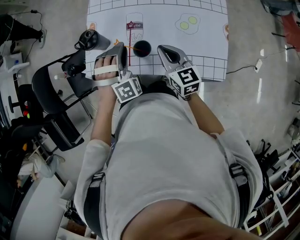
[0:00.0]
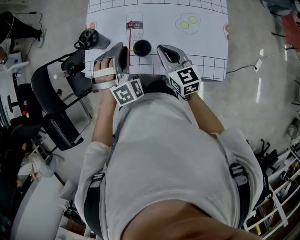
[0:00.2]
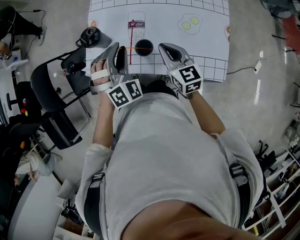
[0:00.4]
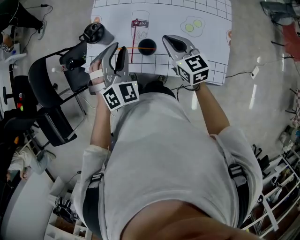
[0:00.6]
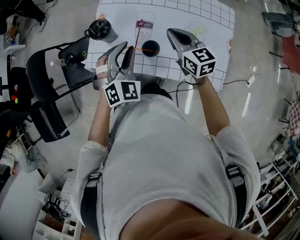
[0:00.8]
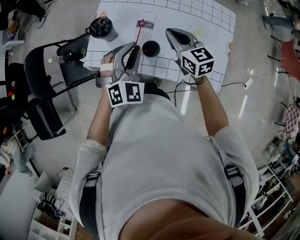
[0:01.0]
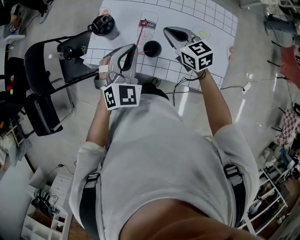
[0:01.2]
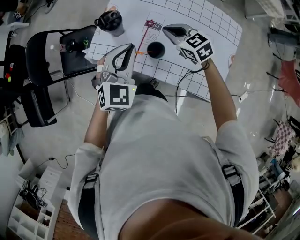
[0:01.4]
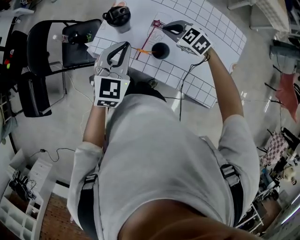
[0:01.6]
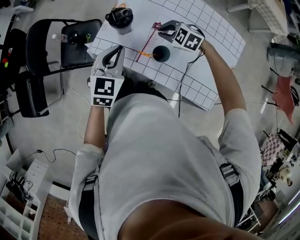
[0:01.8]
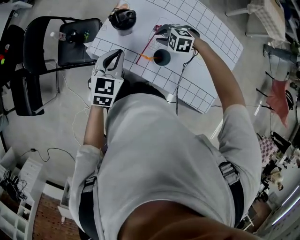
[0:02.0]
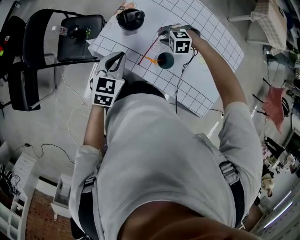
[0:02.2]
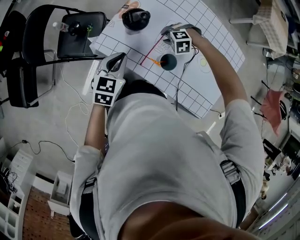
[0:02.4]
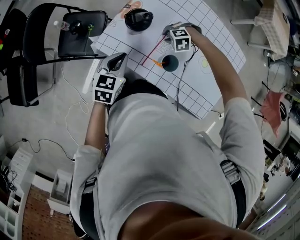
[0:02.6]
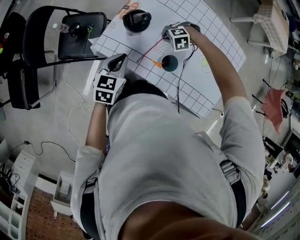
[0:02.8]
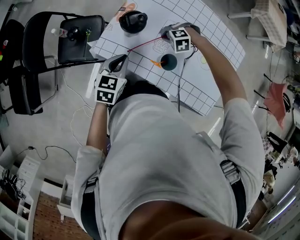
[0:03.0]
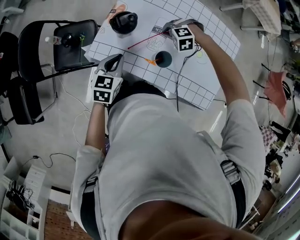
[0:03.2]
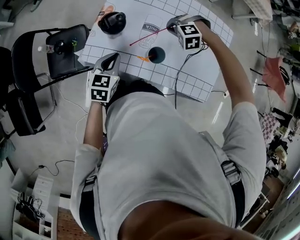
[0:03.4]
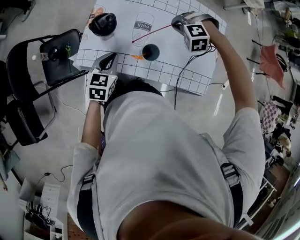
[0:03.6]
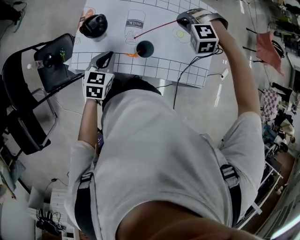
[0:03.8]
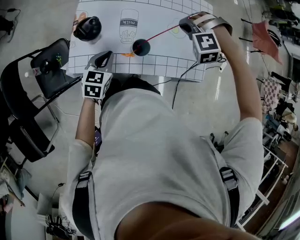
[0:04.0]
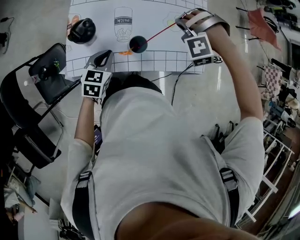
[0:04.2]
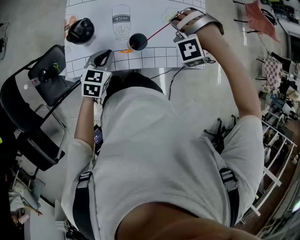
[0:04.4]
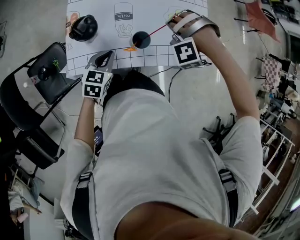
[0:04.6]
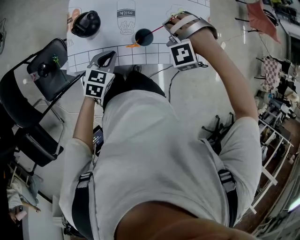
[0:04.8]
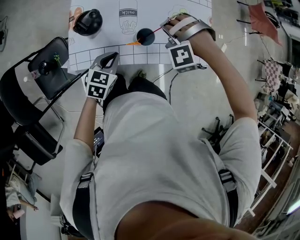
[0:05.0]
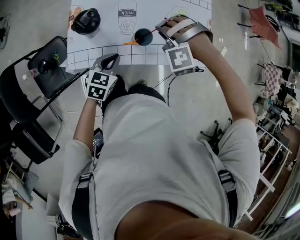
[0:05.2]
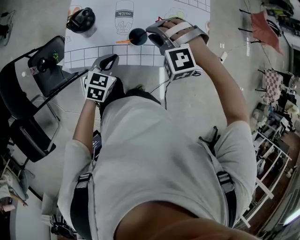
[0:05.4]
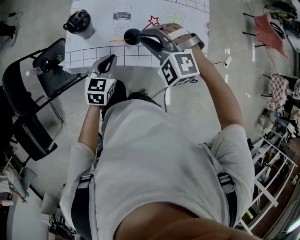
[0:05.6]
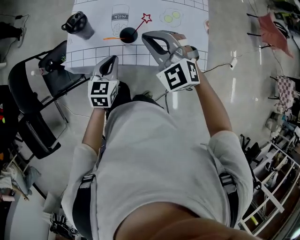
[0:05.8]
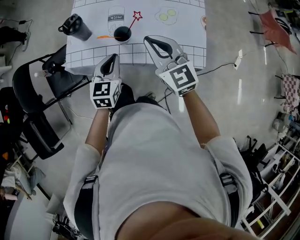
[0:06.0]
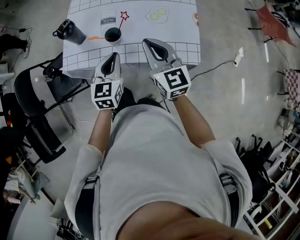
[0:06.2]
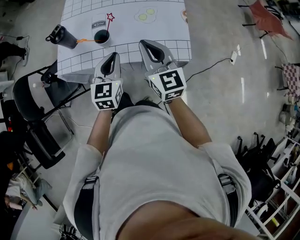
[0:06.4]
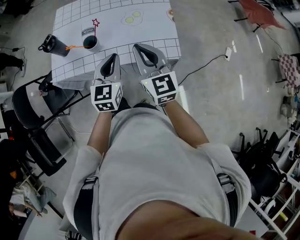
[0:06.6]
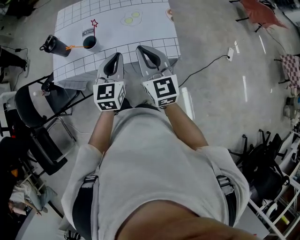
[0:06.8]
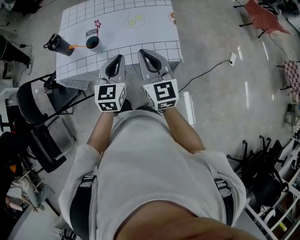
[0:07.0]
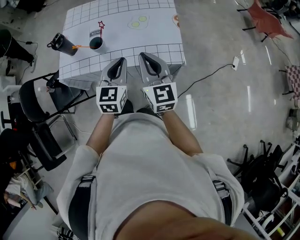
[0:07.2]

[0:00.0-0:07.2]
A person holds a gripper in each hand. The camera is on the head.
0:00.0 to 0:01.4: The left gripper goes approximately 10 cm upward and to the left, rotates around the line of its fingers by approximately 60 degrees, counterclockwise from behind, and closes up; the right gripper moves forward, about 10 cm, and turns by approximately 40 degrees.
0:01.4 to 0:02.8: Both grippers travel together downward, some 15 cm. The left gripper rotates some 40 degrees. The right gripper points its fingers roughly 40 degrees further downward.
0:02.8 to 0:04.4: The right gripper moves upward, about 20 cm, and turns by about 40 degrees. Meanwhile the left gripper shifts by some 10 cm, and changes its angle by about 30 degrees.
0:04.4 to 0:05.8: The right gripper ends up approximately 15 cm from where it was, swivels approximately 90 degrees, and opens, then closes again; the left gripper ends up some 10 cm from where it was.
0:05.8 to 0:07.2: The left gripper moves to the right, upward and backward, roughly 25 cm. Meanwhile the right gripper goes about 25 cm to the right and backward, and twists about 50 degrees clockwise, seen from behind.

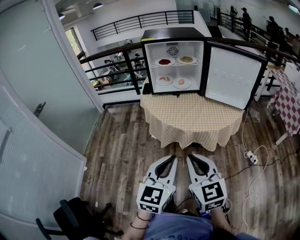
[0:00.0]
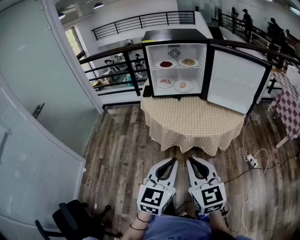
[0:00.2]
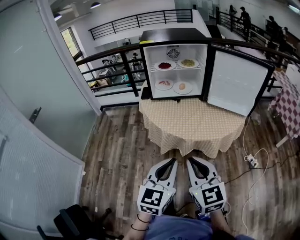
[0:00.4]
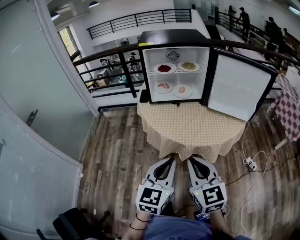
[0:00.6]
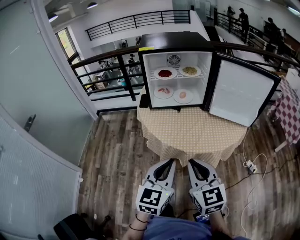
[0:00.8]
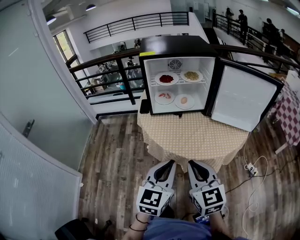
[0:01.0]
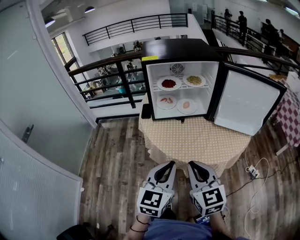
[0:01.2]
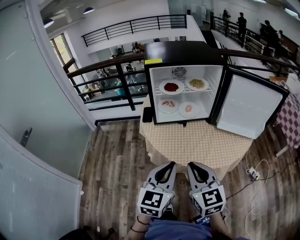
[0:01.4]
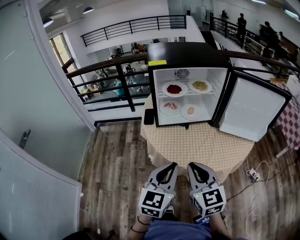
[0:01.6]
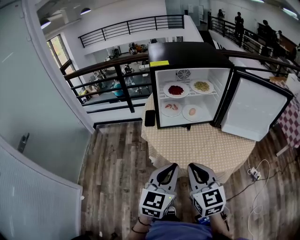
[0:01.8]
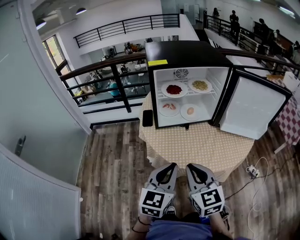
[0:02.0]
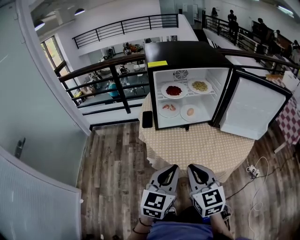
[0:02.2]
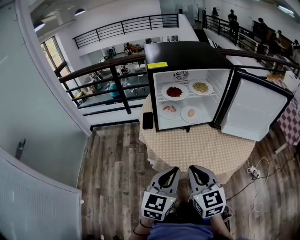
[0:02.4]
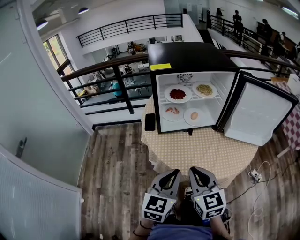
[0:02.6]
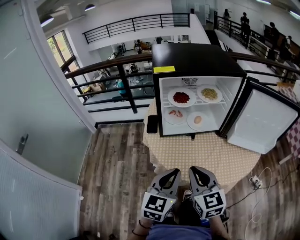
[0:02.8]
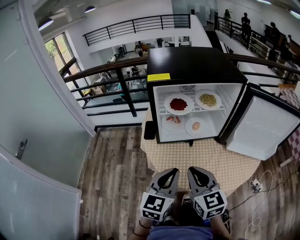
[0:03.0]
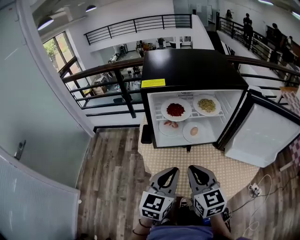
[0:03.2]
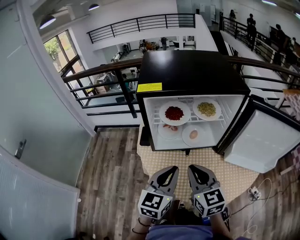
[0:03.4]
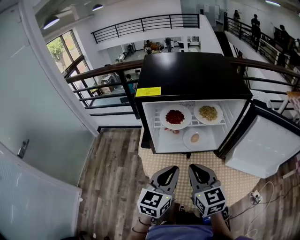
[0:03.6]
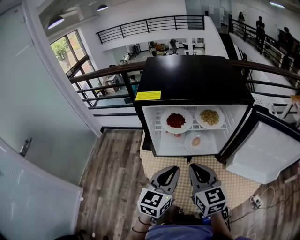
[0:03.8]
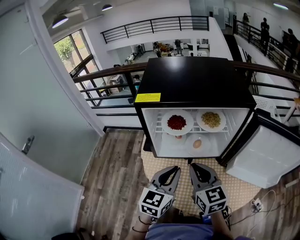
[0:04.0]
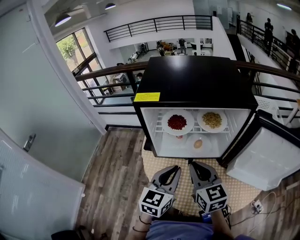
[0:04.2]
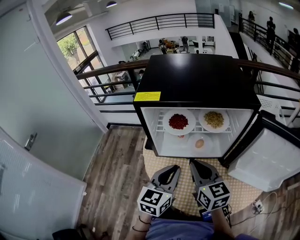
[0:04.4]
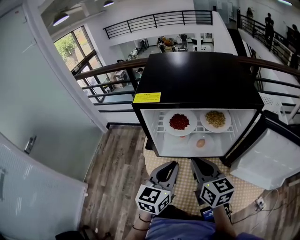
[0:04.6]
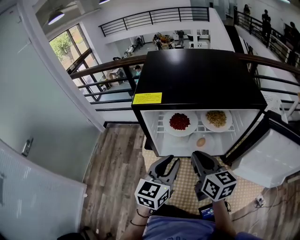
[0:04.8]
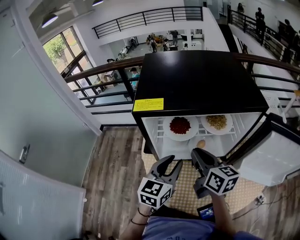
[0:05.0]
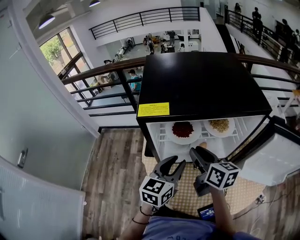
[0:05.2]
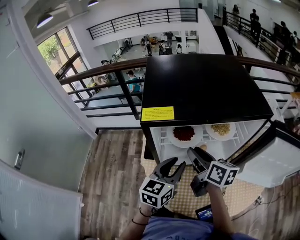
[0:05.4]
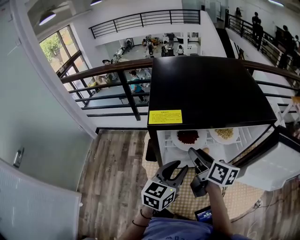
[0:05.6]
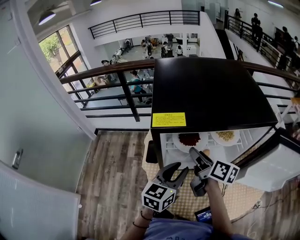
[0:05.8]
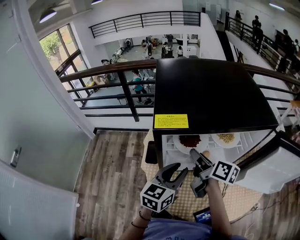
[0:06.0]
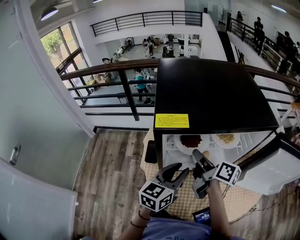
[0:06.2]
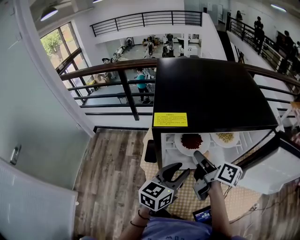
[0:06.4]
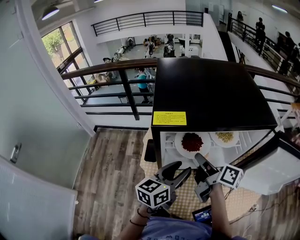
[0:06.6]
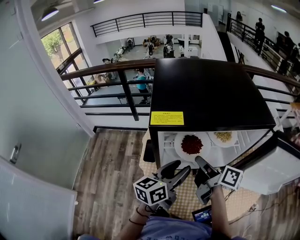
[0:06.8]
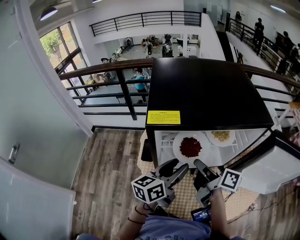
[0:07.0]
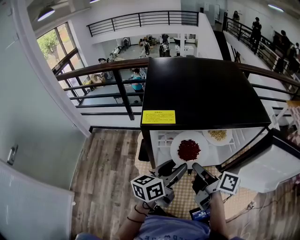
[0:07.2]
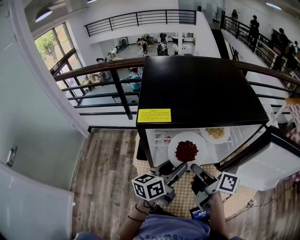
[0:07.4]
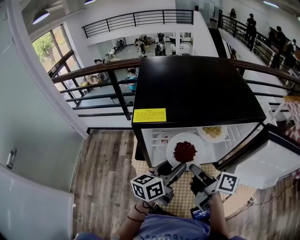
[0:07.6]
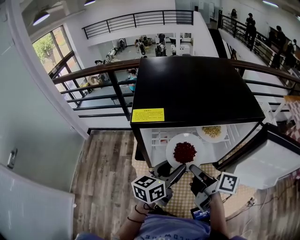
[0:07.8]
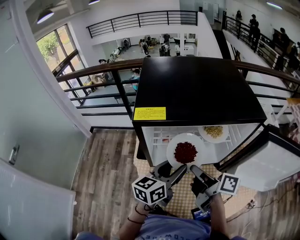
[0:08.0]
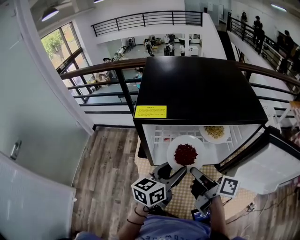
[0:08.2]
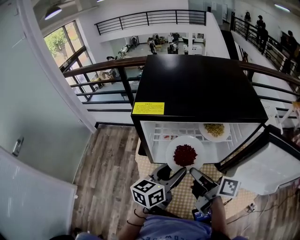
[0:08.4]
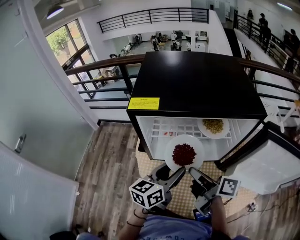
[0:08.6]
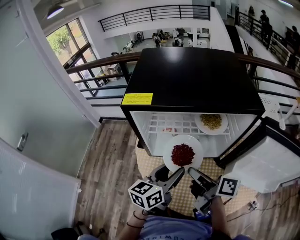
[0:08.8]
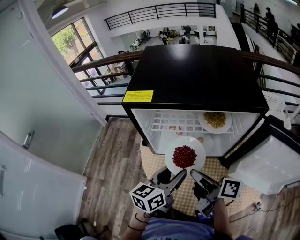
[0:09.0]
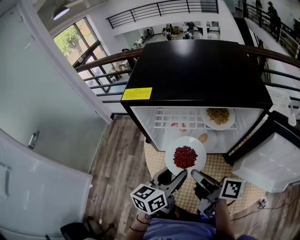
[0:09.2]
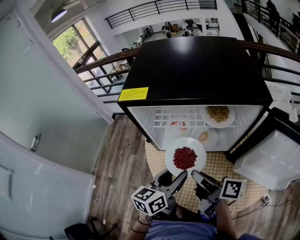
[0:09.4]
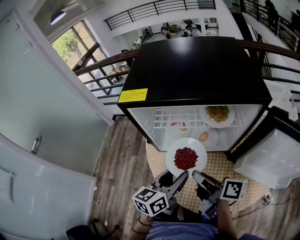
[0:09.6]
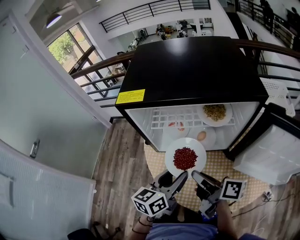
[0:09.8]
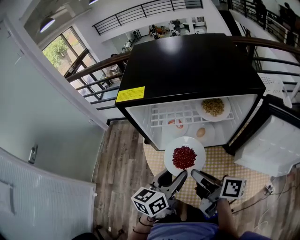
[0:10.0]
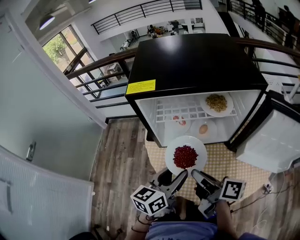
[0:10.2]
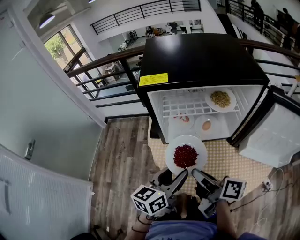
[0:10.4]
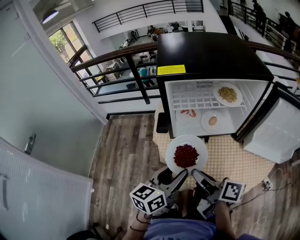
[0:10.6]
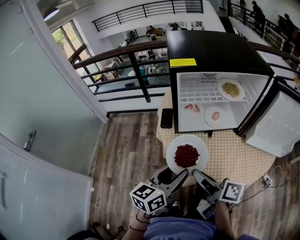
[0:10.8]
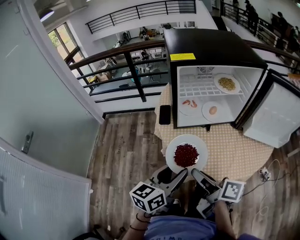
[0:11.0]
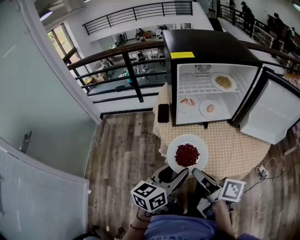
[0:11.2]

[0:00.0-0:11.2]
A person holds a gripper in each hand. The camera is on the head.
0:00.0 to 0:01.6: Both grippers move forward, some 25 cm.
0:01.6 to 0:03.2: The two grippers go some 15 cm forward.
0:03.2 to 0:04.8: The grippers both shift forward by some 15 cm. The right gripper changes its angle by about 20 degrees.
0:04.8 to 0:06.4: The right gripper shifts some 10 cm forward, changes its angle by roughly 40 degrees, and opens, then closes once more.
0:06.4 to 0:08.0: The right gripper travels backward by some 5 cm.
0:08.0 to 0:09.6: The two grippers go approximately 10 cm backward.
0:09.6 to 0:11.2: Both grippers move backward and to the left, approximately 25 cm.

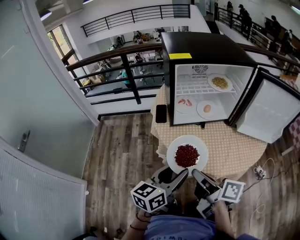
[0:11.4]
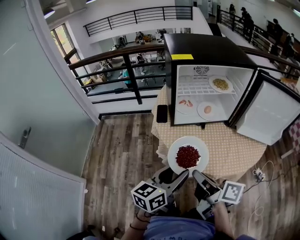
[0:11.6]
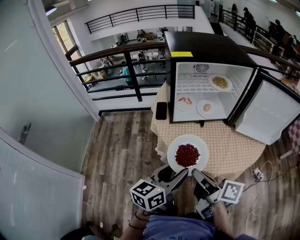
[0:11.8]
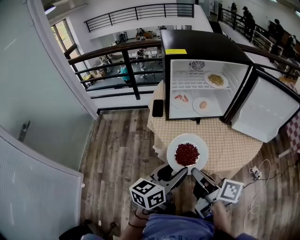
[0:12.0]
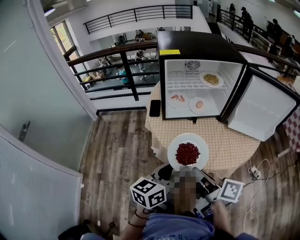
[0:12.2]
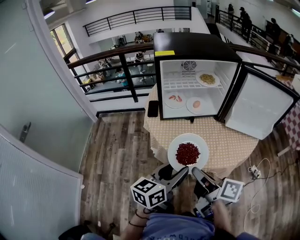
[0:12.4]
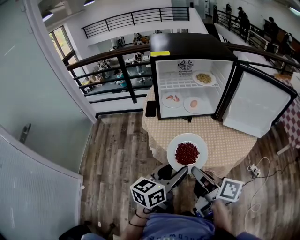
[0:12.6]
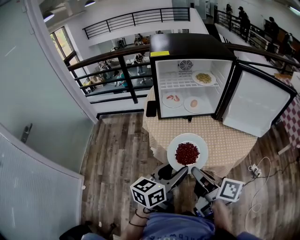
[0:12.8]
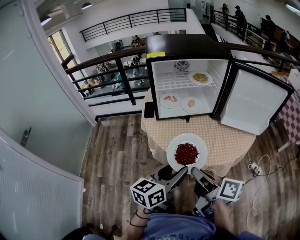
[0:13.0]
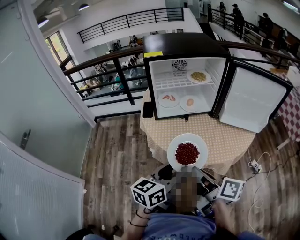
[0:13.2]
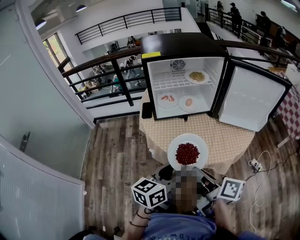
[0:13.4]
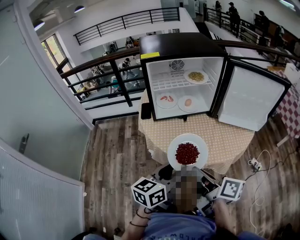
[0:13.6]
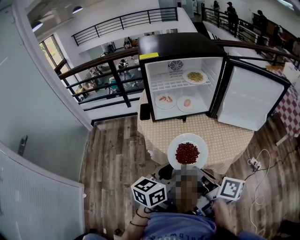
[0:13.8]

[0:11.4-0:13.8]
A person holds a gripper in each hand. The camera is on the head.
0:11.4 to 0:12.6: Both grippers move to the right and backward, some 10 cm.
0:12.6 to 0:13.8: The grippers make only small movements.

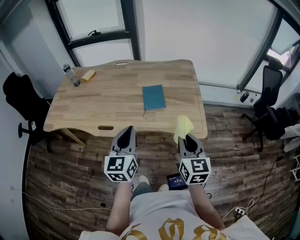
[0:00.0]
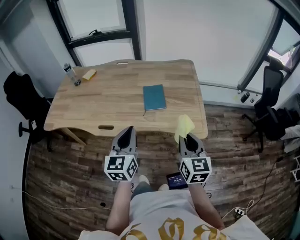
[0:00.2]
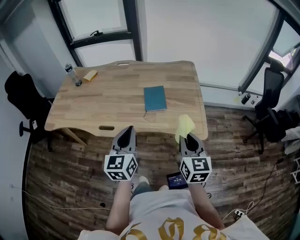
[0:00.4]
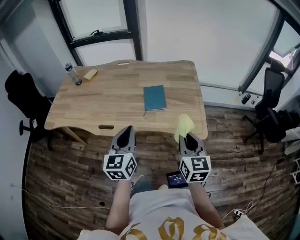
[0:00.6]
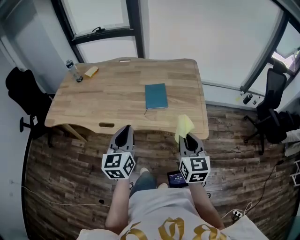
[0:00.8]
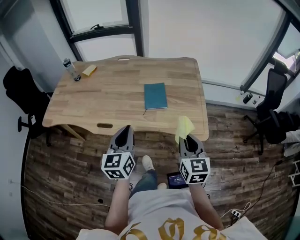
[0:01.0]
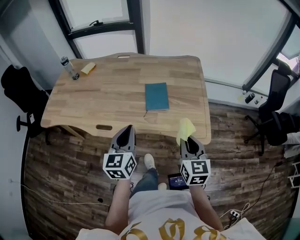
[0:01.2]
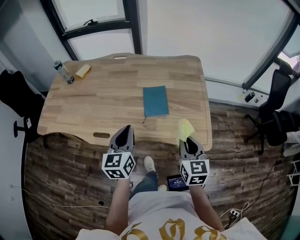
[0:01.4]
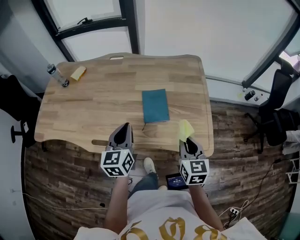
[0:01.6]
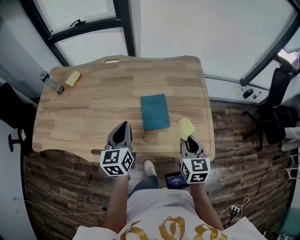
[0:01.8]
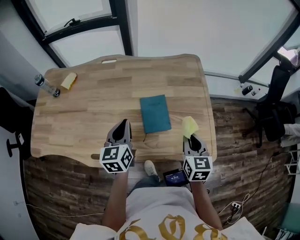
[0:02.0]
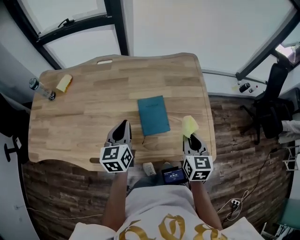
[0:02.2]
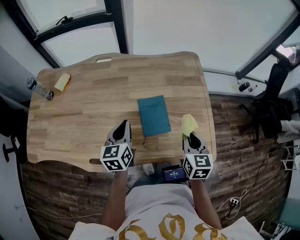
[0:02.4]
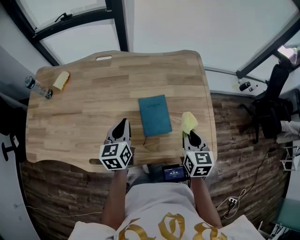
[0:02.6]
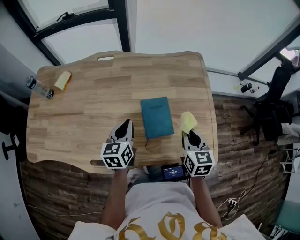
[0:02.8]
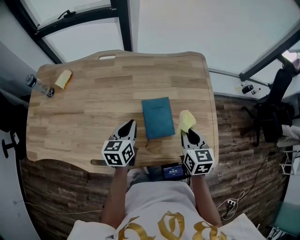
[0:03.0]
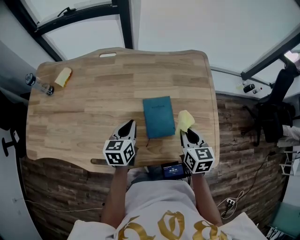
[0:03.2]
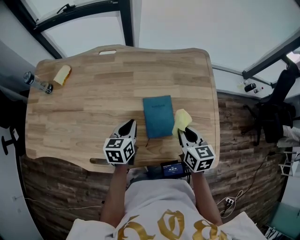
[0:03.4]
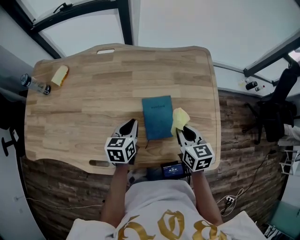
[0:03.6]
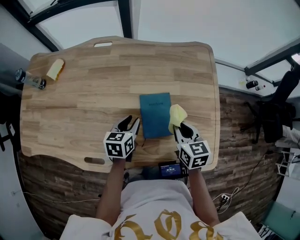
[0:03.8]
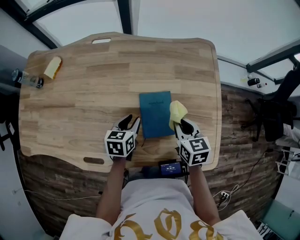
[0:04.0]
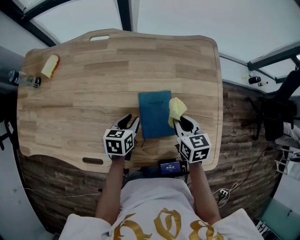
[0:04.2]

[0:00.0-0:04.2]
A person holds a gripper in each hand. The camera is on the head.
0:00.0 to 0:01.4: The two grippers go roughly 15 cm forward and downward.
0:01.4 to 0:02.8: The left gripper goes approximately 25 cm forward and downward. The right gripper travels forward by some 20 cm.
0:02.8 to 0:04.2: The left gripper moves downward, about 15 cm, swivels about 20 degrees, and opens its fingers, while the right gripper heads forward and downward, covering about 10 cm.
